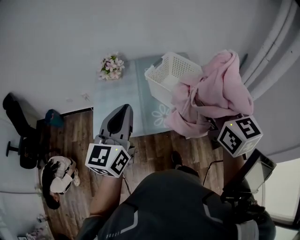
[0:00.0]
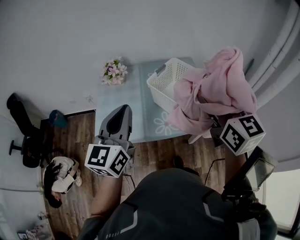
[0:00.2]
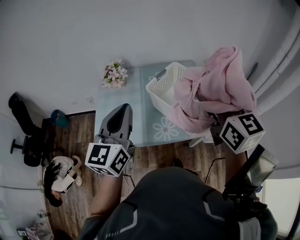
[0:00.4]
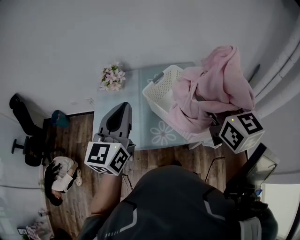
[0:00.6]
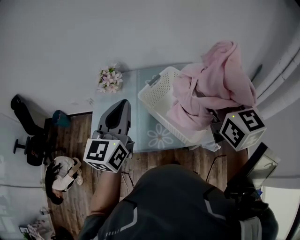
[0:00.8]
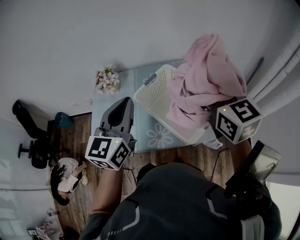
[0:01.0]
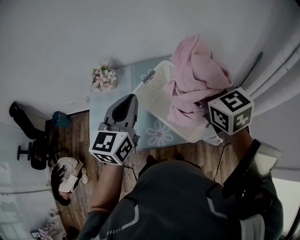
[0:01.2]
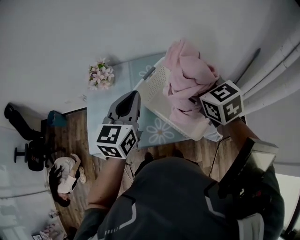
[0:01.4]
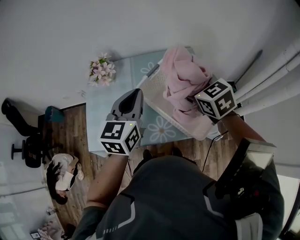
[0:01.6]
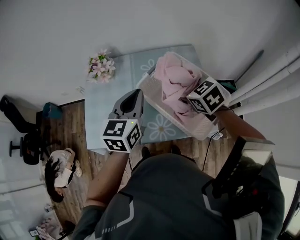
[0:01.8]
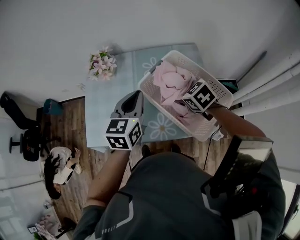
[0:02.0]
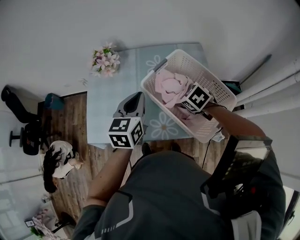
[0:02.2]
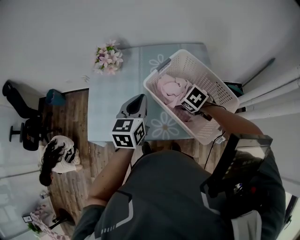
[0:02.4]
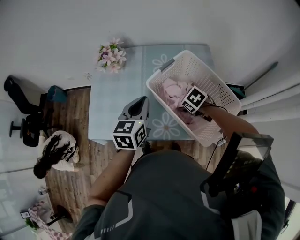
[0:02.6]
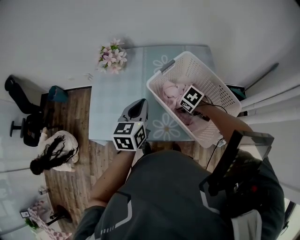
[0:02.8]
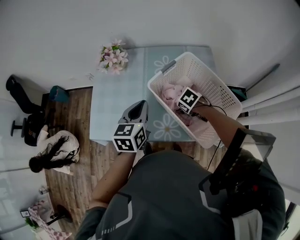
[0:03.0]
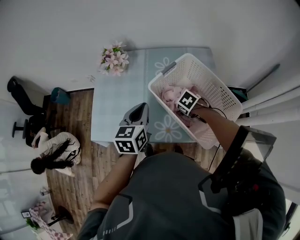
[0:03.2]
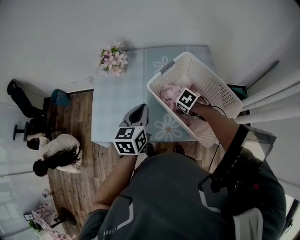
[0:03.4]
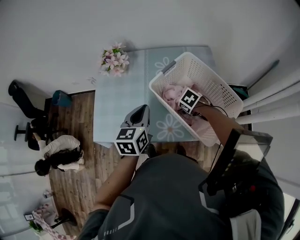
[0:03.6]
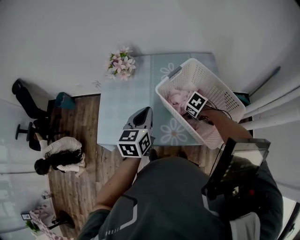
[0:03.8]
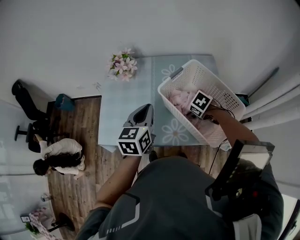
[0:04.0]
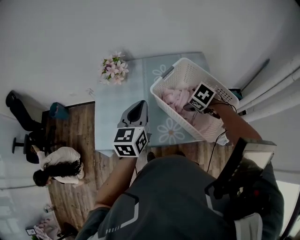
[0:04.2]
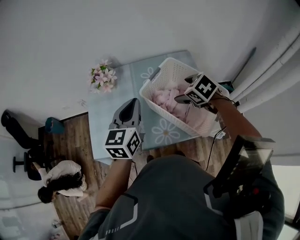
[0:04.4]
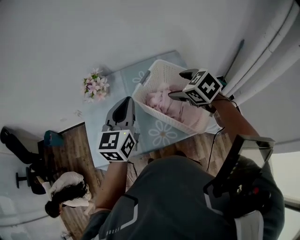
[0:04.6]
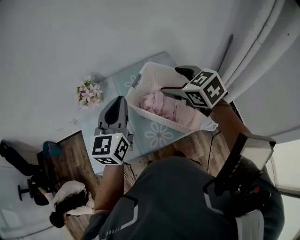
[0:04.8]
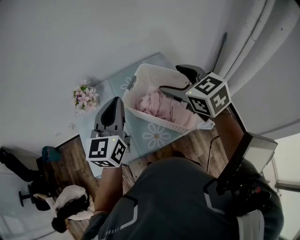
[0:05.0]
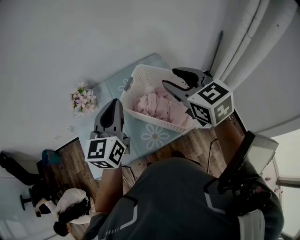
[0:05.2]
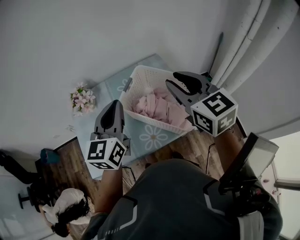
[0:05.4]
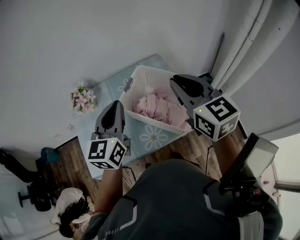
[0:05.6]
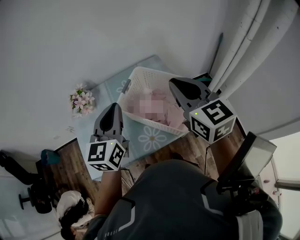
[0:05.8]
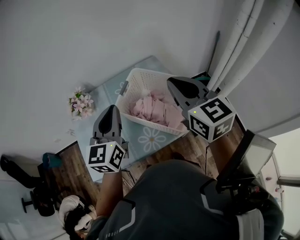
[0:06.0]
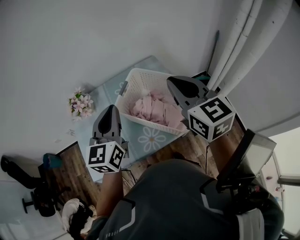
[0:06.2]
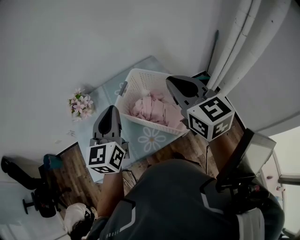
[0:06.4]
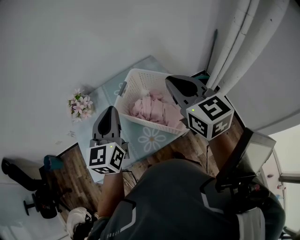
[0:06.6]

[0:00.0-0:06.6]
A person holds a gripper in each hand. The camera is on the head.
0:00.0 to 0:01.6: The left gripper travels forward and to the right by about 20 cm. The right gripper heads forward and downward, covering approximately 25 cm, and swivels approximately 30 degrees.
0:01.6 to 0:03.2: The right gripper shifts roughly 30 cm downward, and angles its fingers downward, by approximately 40 degrees; the left gripper heads downward, covering roughly 15 cm.
0:03.2 to 0:05.0: The left gripper heads upward, covering some 20 cm, and changes its angle by roughly 30 degrees. The right gripper heads upward, covering some 35 cm, and tips its fingers upward by roughly 50 degrees.
0:05.0 to 0:06.6: The right gripper ends up about 5 cm from where it was, swivels about 20 degrees, and closes up.

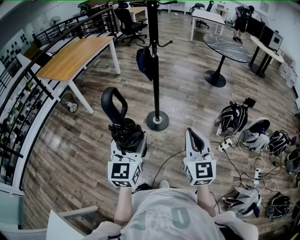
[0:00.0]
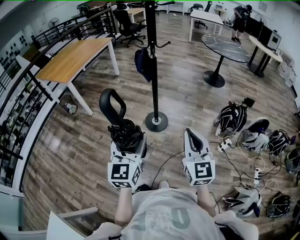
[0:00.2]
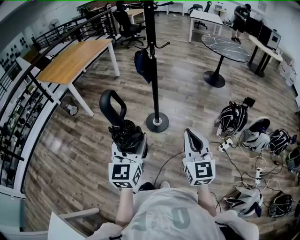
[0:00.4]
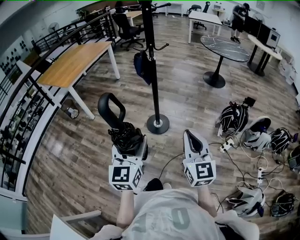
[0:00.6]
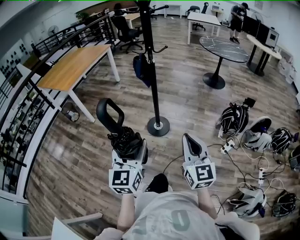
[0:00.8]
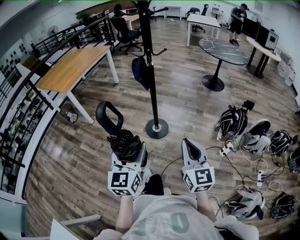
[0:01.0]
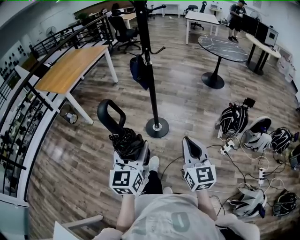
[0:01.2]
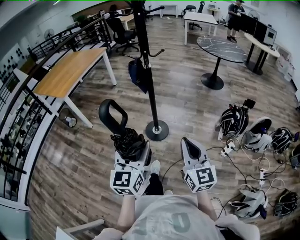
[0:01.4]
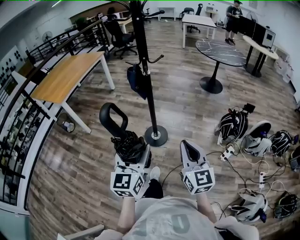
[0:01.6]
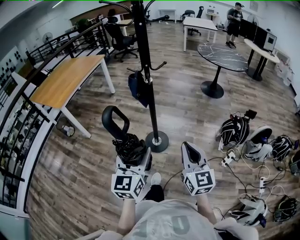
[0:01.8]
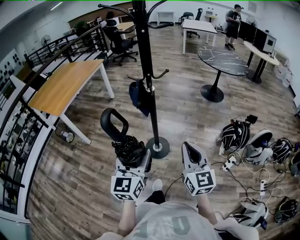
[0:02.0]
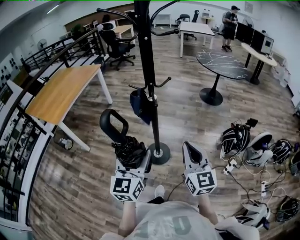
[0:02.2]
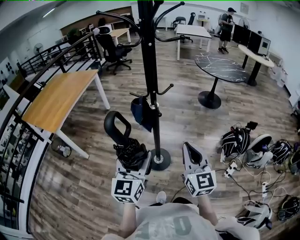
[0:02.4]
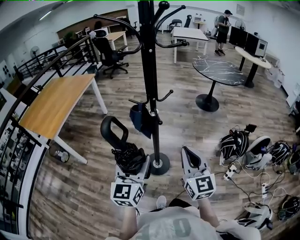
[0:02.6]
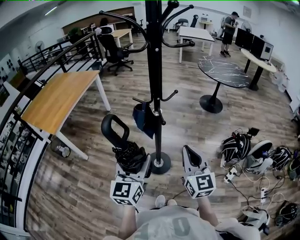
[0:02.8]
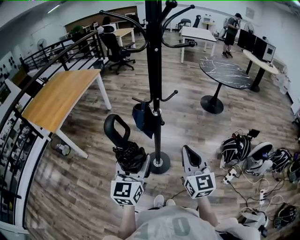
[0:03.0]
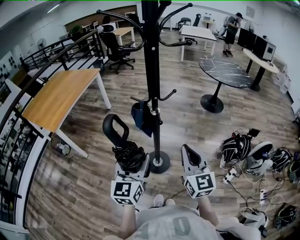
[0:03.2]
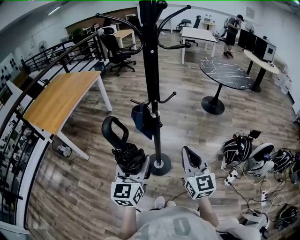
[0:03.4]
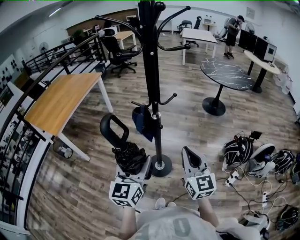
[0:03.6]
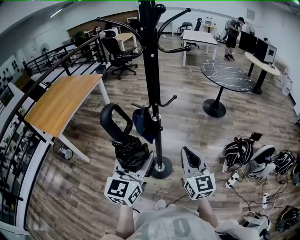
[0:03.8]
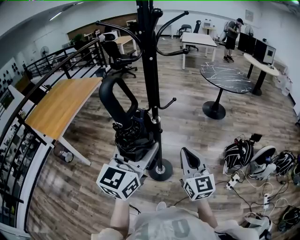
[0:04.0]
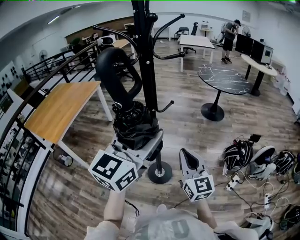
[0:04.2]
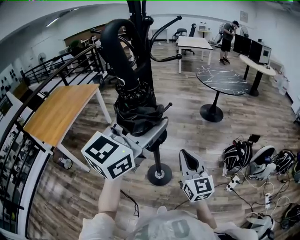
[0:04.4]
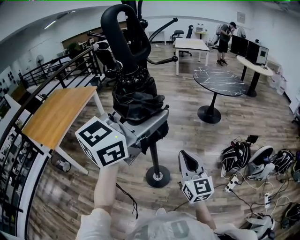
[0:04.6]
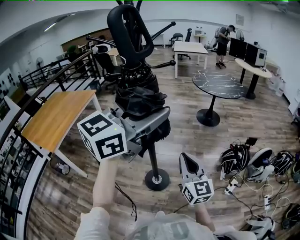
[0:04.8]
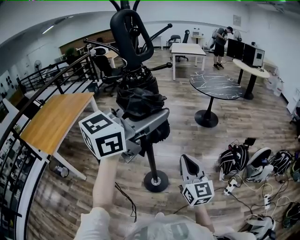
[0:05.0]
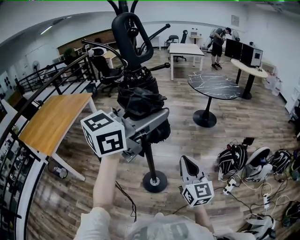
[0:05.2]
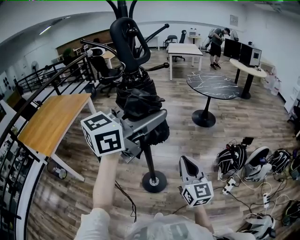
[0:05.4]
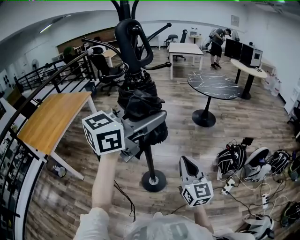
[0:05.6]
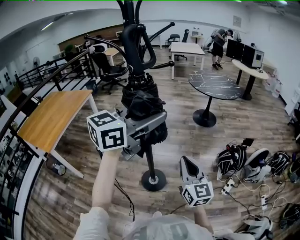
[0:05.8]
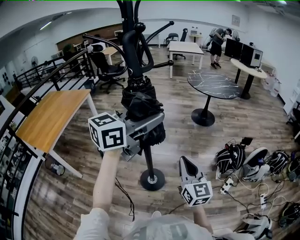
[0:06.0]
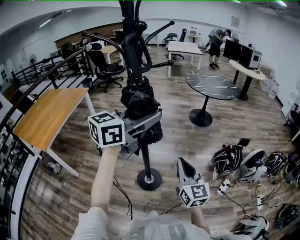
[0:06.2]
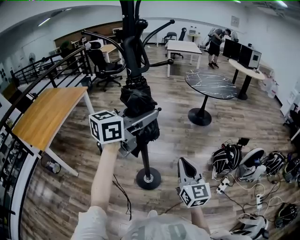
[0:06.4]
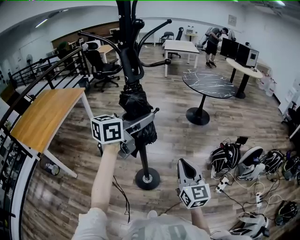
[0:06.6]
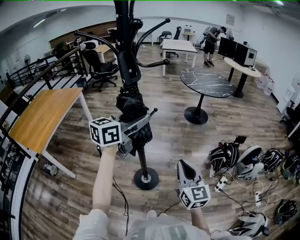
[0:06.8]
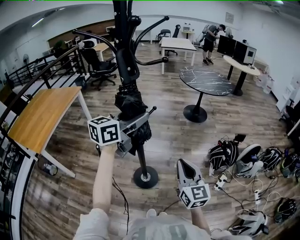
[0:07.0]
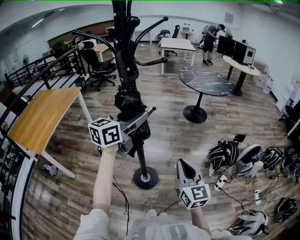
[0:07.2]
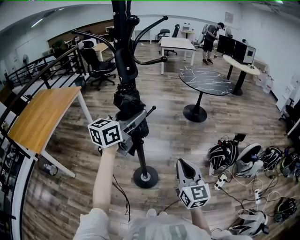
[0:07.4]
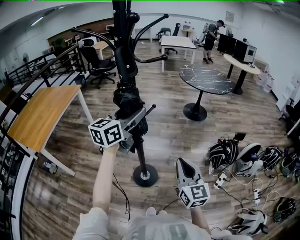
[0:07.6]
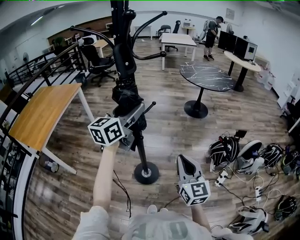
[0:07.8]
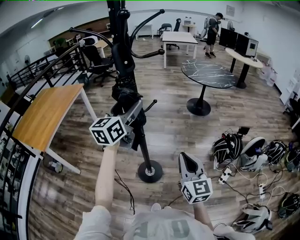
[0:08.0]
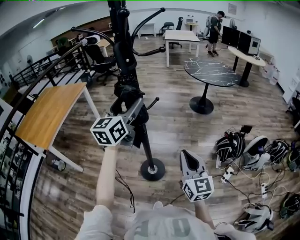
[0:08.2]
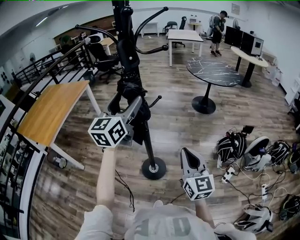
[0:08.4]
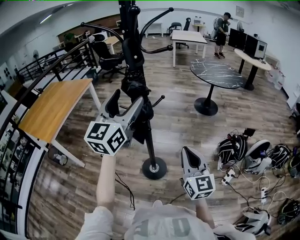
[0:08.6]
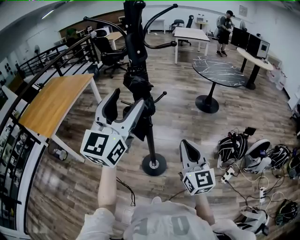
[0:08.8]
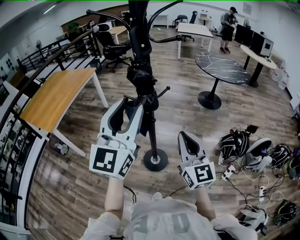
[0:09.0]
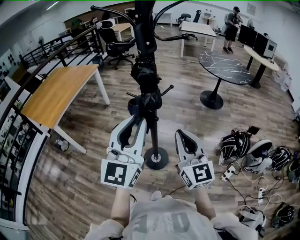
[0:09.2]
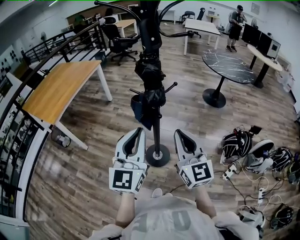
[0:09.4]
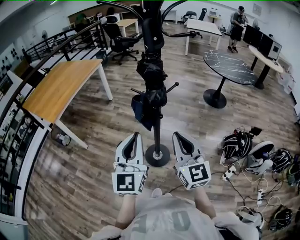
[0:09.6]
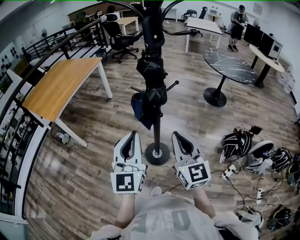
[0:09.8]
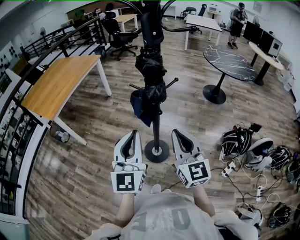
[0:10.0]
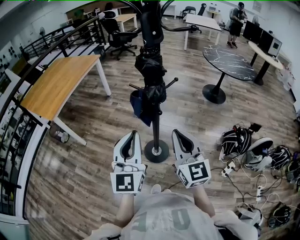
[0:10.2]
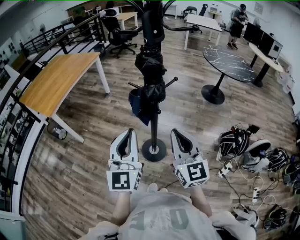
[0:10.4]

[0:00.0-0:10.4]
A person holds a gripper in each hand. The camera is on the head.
0:00.0 to 0:01.4: The left gripper goes some 5 cm forward, while the right gripper shifts by approximately 5 cm.
0:01.4 to 0:03.0: Both grippers travel together forward, some 30 cm.
0:03.0 to 0:04.4: The left gripper goes some 25 cm upward and to the right, and changes its angle by roughly 30 degrees.
0:04.4 to 0:06.0: The left gripper is displaced forward by about 5 cm, and swivels about 20 degrees.
0:06.0 to 0:07.4: The left gripper is displaced downward, to the left and forward by some 15 cm.
0:07.4 to 0:09.0: The left gripper heads backward and upward, covering some 15 cm, and rotates some 40 degrees, while the right gripper travels upward by about 5 cm.
0:09.0 to 0:10.4: The left gripper is displaced downward by about 15 cm, and closes. The right gripper moves approximately 5 cm.

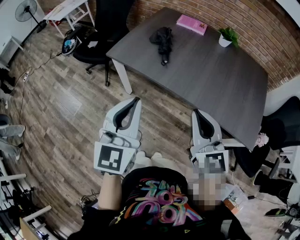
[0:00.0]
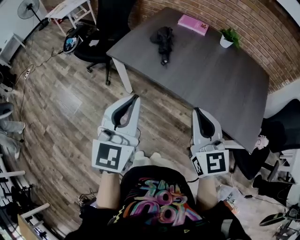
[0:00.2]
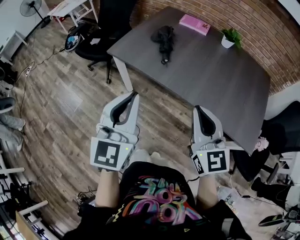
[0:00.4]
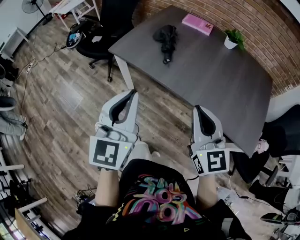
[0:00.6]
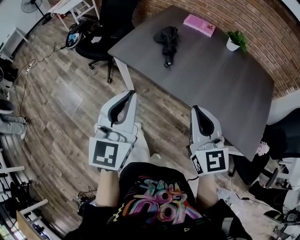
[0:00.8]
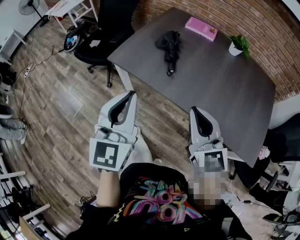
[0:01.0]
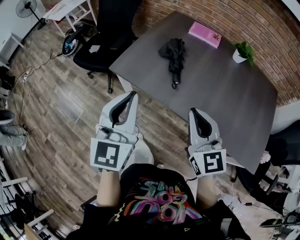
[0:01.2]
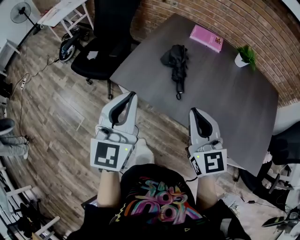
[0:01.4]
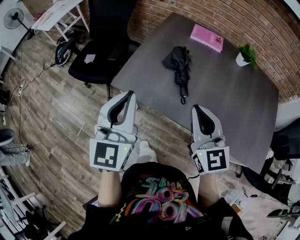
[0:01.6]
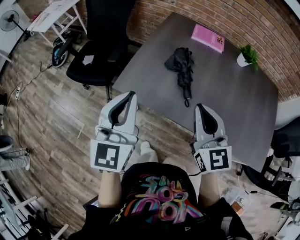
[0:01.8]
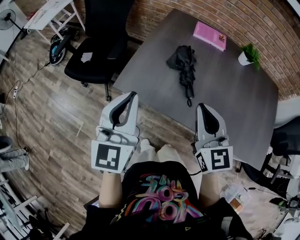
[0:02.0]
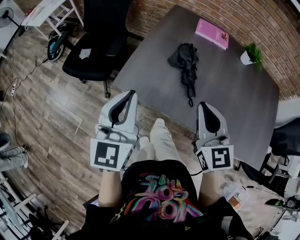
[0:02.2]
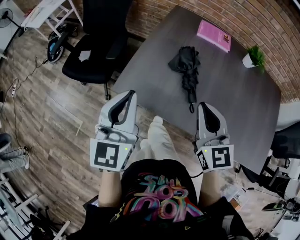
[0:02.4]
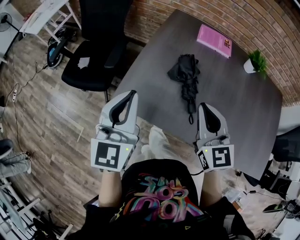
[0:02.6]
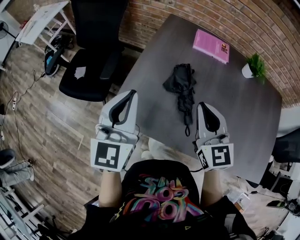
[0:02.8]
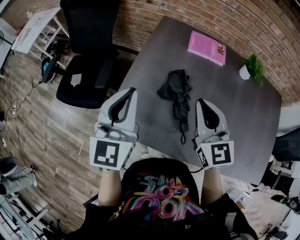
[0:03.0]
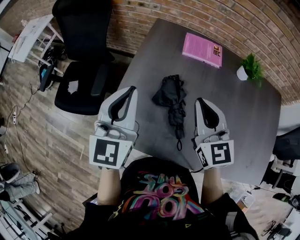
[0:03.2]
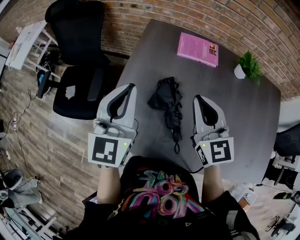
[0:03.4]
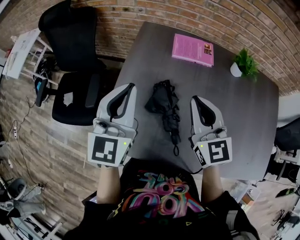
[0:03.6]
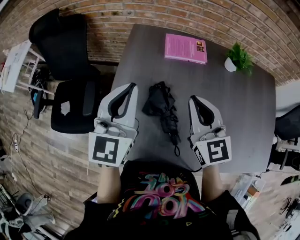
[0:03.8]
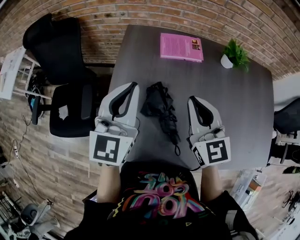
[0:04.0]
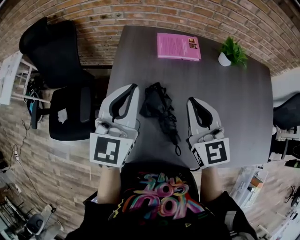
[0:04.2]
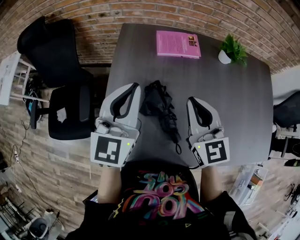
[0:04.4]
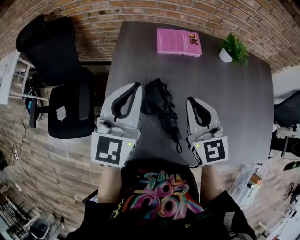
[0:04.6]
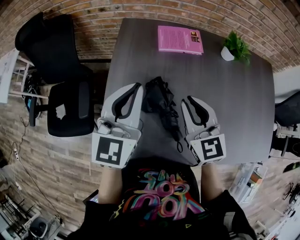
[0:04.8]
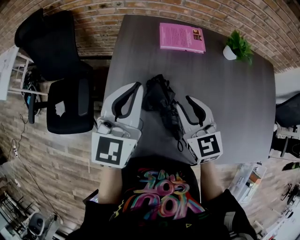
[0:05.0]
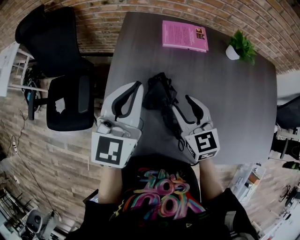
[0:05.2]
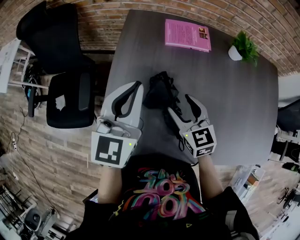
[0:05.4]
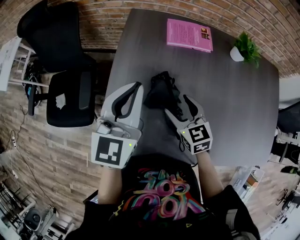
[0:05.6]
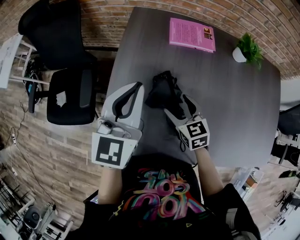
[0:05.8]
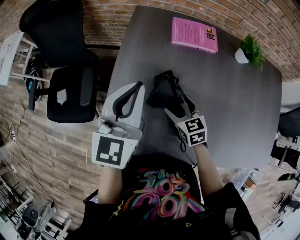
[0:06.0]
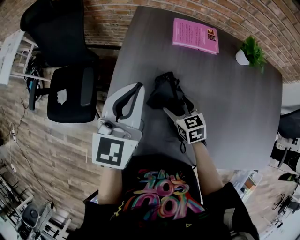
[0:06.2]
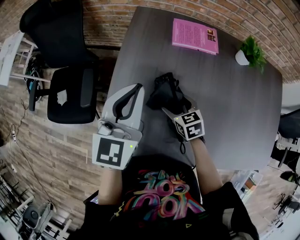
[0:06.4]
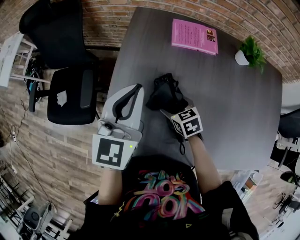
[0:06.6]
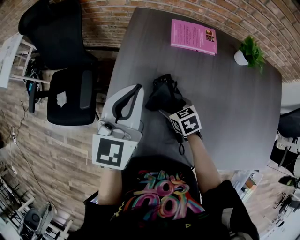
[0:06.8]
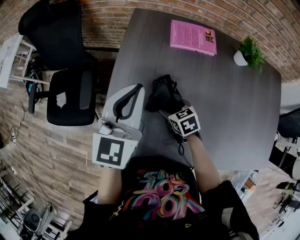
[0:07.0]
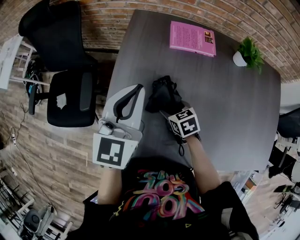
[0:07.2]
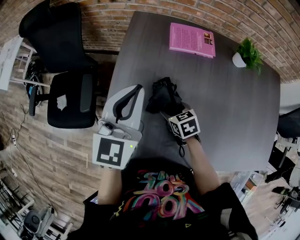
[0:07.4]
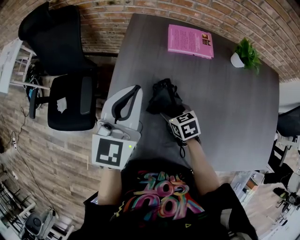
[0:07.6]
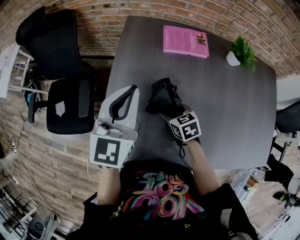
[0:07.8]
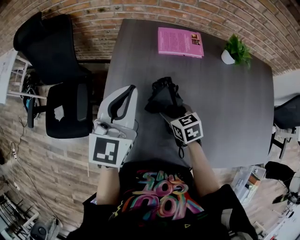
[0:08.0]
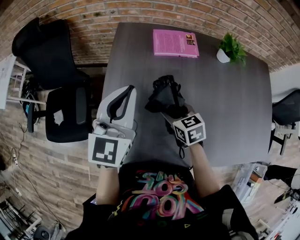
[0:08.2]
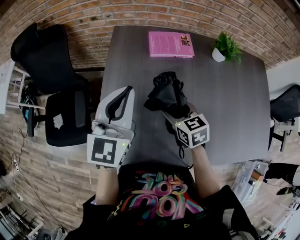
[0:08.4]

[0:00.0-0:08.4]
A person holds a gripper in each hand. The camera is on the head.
0:00.0 to 0:01.4: The right gripper travels forward and to the left by roughly 25 cm. The left gripper goes approximately 25 cm forward.
0:01.4 to 0:02.8: The two grippers go about 20 cm forward.
0:02.8 to 0:04.2: The left gripper travels forward and to the right by approximately 20 cm, and rotates about 20 degrees. The right gripper travels forward and to the right by roughly 15 cm.
0:04.2 to 0:05.6: The right gripper goes roughly 15 cm downward, rotates some 20 degrees, and opens its fingers.
0:05.6 to 0:07.0: The right gripper travels downward by about 10 cm, and swivels roughly 30 degrees.
0:07.0 to 0:08.4: The right gripper shifts approximately 10 cm upward, and swivels some 20 degrees.
